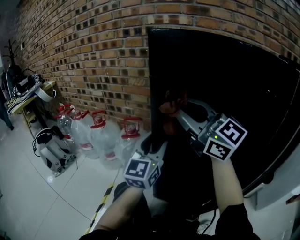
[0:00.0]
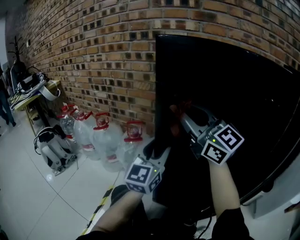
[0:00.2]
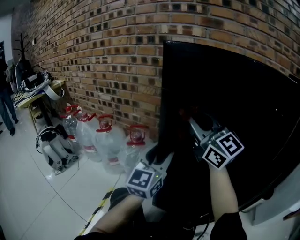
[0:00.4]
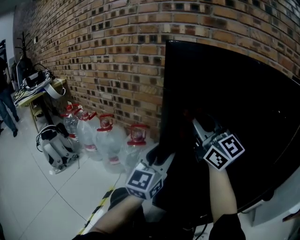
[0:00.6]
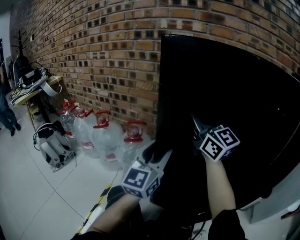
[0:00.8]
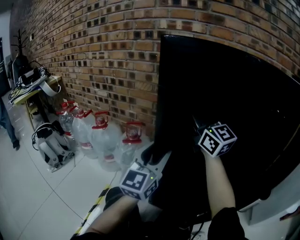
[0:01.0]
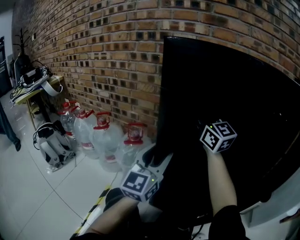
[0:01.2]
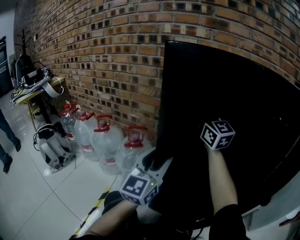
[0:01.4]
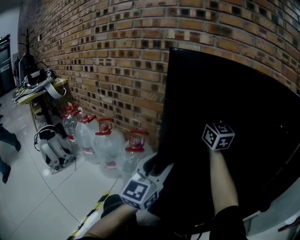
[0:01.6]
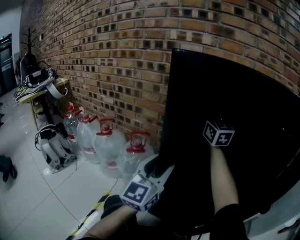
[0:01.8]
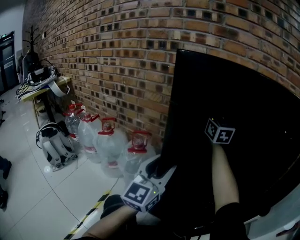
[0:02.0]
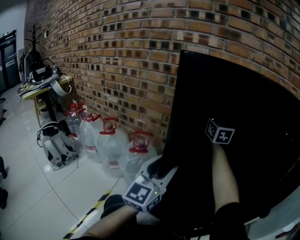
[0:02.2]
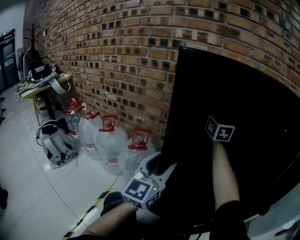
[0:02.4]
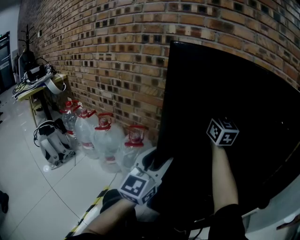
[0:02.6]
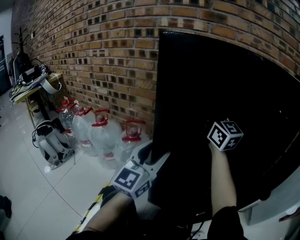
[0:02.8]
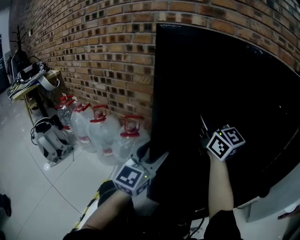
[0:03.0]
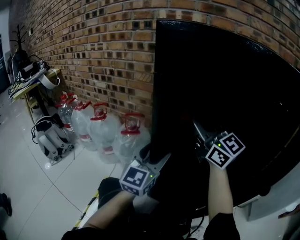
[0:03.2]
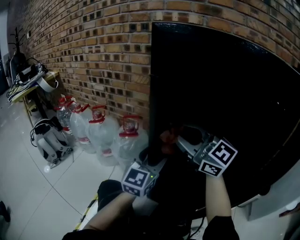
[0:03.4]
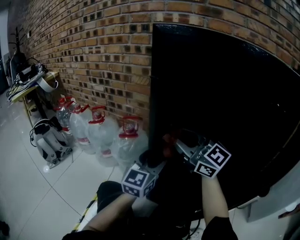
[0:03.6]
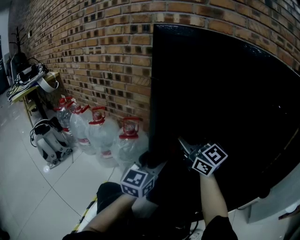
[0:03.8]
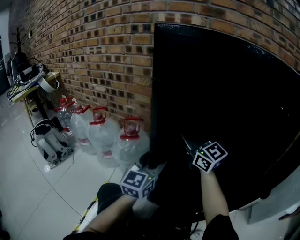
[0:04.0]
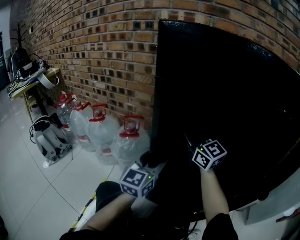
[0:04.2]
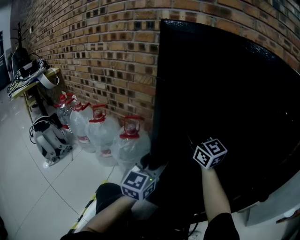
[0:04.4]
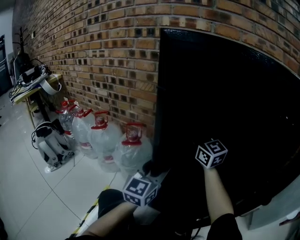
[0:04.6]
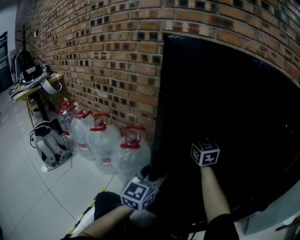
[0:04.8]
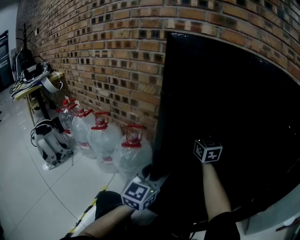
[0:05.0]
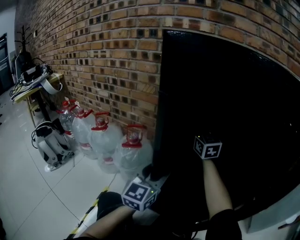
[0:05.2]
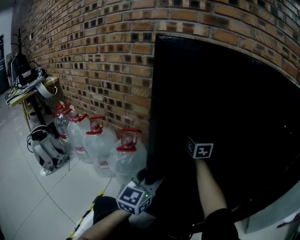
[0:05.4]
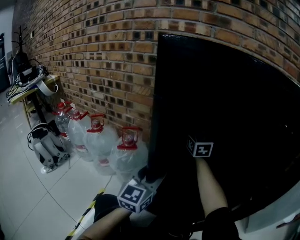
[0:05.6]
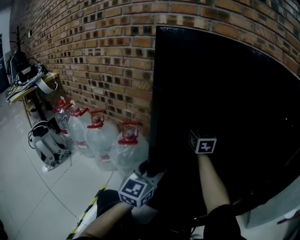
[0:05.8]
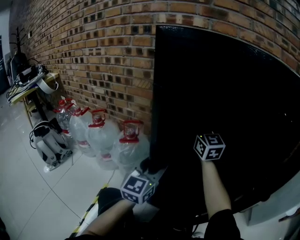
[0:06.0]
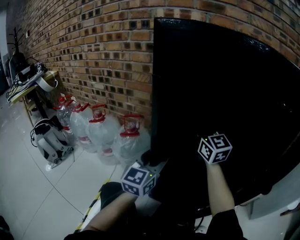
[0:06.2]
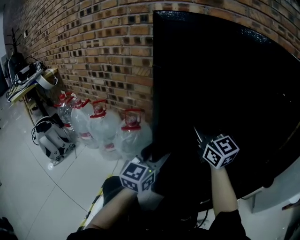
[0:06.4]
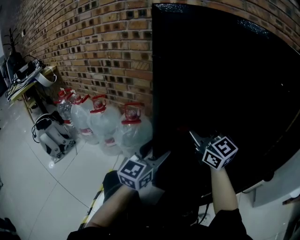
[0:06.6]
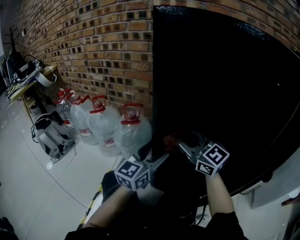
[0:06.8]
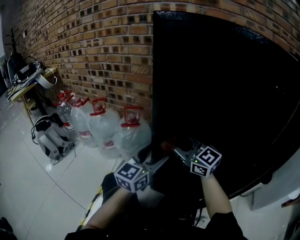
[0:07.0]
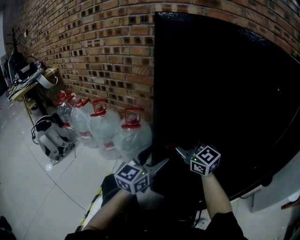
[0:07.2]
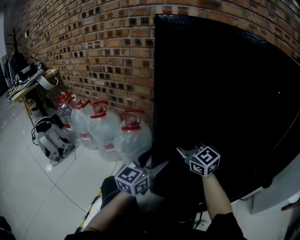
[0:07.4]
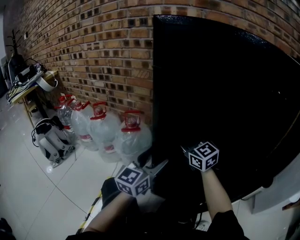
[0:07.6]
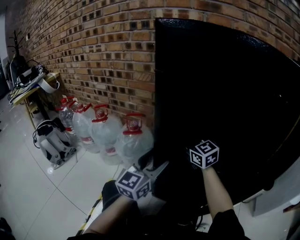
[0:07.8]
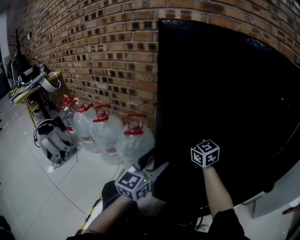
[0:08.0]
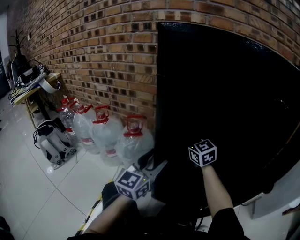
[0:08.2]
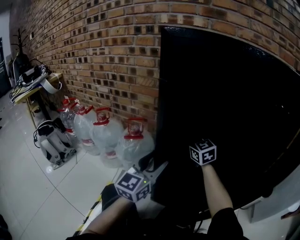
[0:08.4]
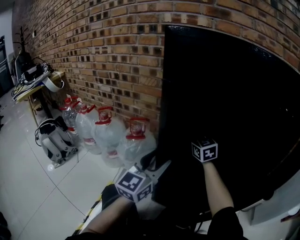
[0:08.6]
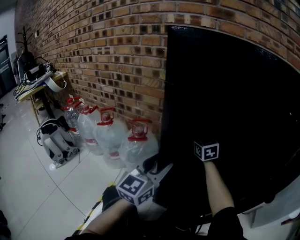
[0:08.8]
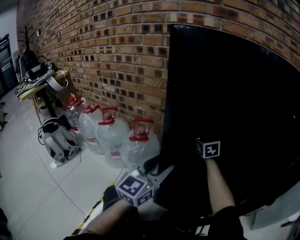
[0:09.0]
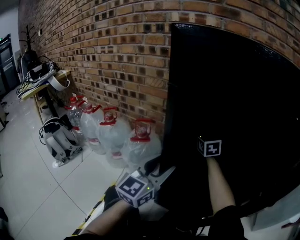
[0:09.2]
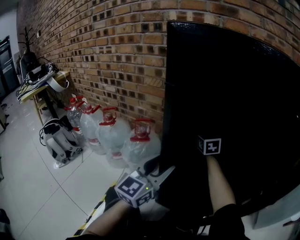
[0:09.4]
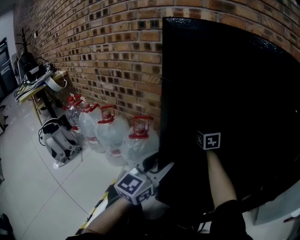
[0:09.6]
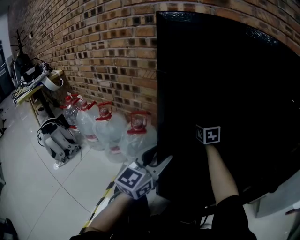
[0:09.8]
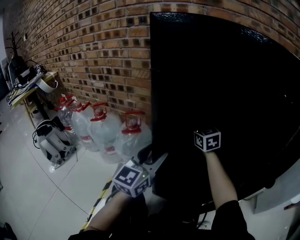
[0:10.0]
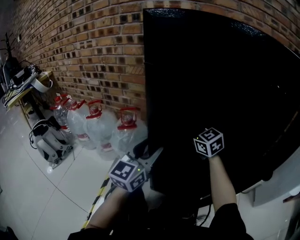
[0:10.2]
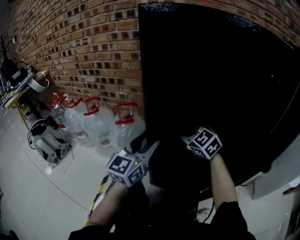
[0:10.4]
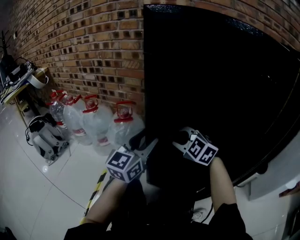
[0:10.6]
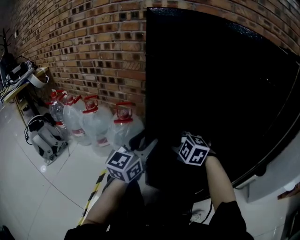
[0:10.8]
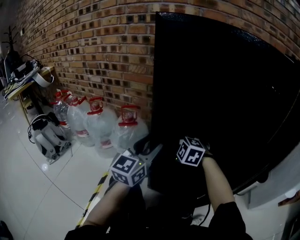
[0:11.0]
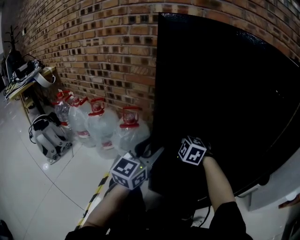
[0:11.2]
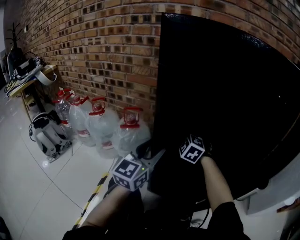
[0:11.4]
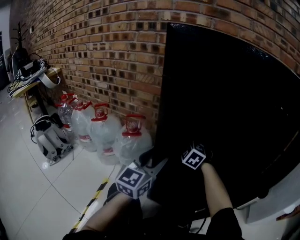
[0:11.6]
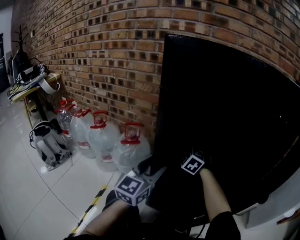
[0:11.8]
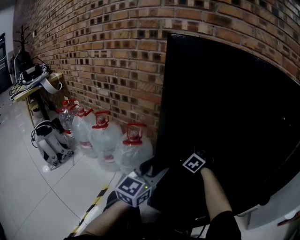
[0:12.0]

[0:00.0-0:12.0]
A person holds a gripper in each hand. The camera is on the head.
0:00.0 to 0:01.6: The right gripper moves forward and to the right, some 20 cm, and turns by approximately 30 degrees.
0:01.6 to 0:03.0: The right gripper travels backward by some 10 cm.
0:03.0 to 0:04.4: The right gripper is displaced downward by about 10 cm, while the left gripper goes some 5 cm downward.
0:04.4 to 0:06.0: The right gripper moves forward, some 5 cm.
0:06.0 to 0:07.6: The right gripper moves downward, backward and to the left, some 15 cm, and turns by about 20 degrees.
0:07.6 to 0:09.0: The right gripper heads forward, covering some 15 cm, and rotates approximately 20 degrees.
0:09.0 to 0:10.4: The right gripper travels backward by about 15 cm, and changes its angle by roughly 30 degrees.
0:10.4 to 0:12.0: The right gripper goes some 15 cm forward and downward, and turns by approximately 30 degrees.

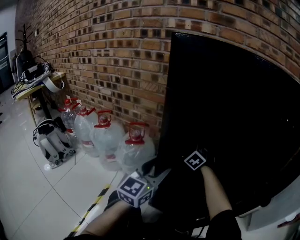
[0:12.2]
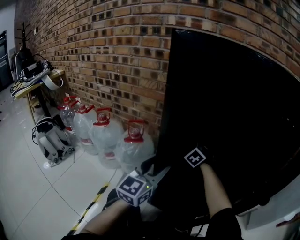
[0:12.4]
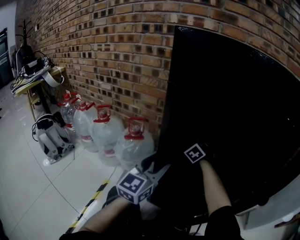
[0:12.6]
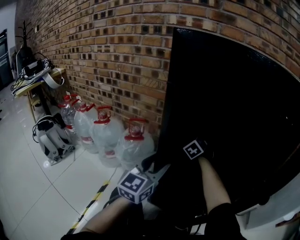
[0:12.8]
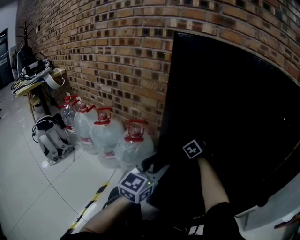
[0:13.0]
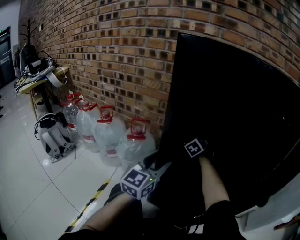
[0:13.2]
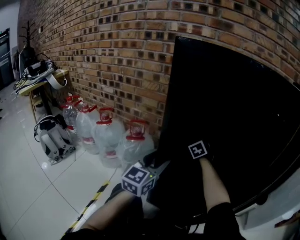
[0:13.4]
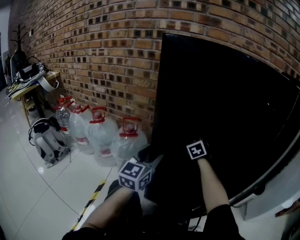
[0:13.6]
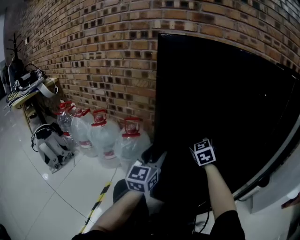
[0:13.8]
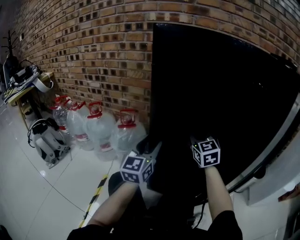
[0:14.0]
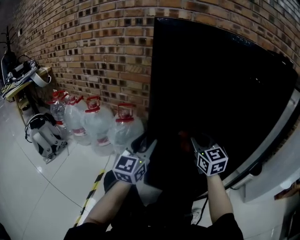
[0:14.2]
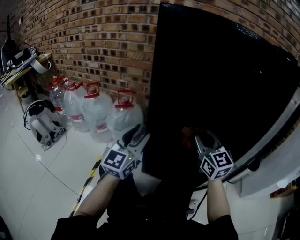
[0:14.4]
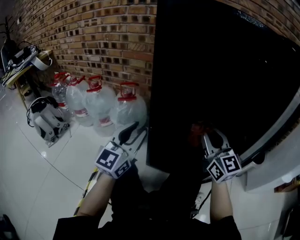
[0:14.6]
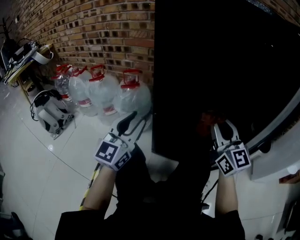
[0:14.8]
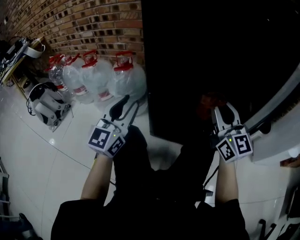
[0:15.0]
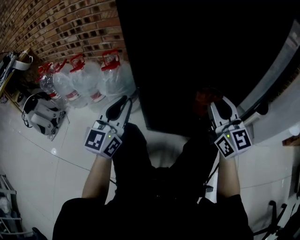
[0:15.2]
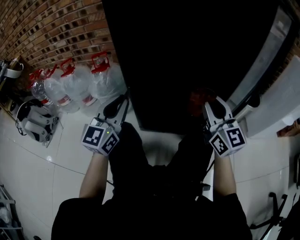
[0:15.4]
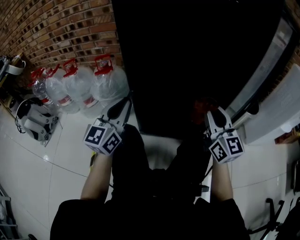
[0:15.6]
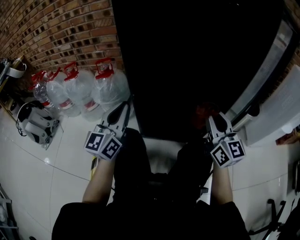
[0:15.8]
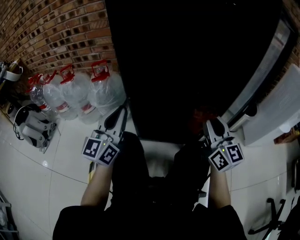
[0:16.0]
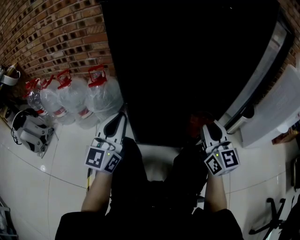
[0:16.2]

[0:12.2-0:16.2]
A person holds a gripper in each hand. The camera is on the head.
0:12.2 to 0:13.6: The right gripper travels upward by roughly 5 cm, and changes its angle by approximately 20 degrees.
0:13.6 to 0:14.8: The right gripper moves backward, about 30 cm, and points its fingers about 30 degrees further upward. Meanwhile the left gripper travels backward and to the left by roughly 15 cm.
0:14.8 to 0:16.2: The left gripper closes up. The right gripper heads backward, downward and to the right, covering roughly 10 cm.

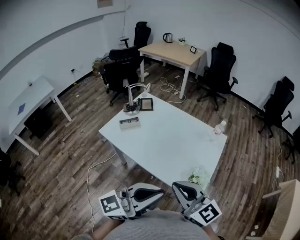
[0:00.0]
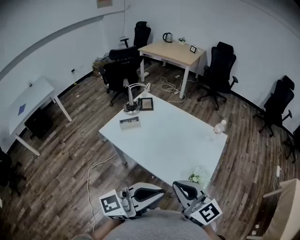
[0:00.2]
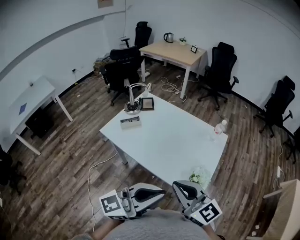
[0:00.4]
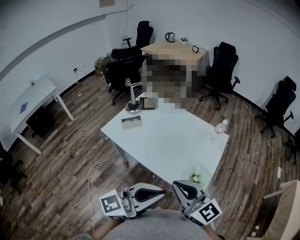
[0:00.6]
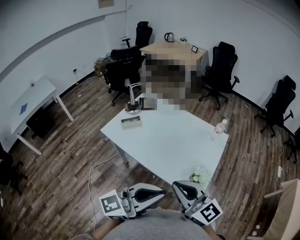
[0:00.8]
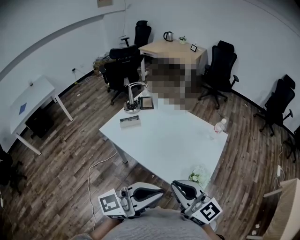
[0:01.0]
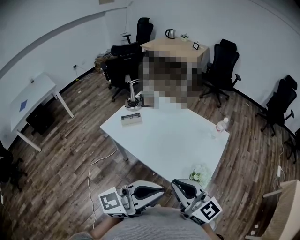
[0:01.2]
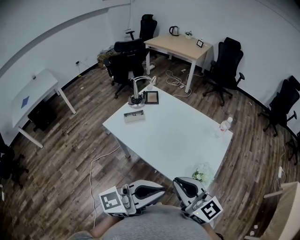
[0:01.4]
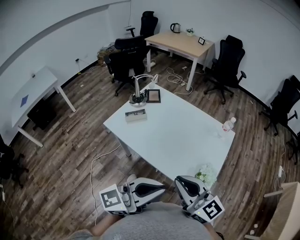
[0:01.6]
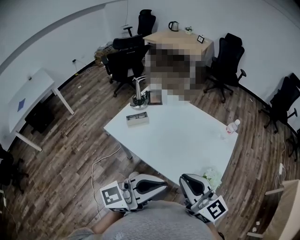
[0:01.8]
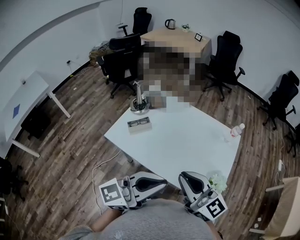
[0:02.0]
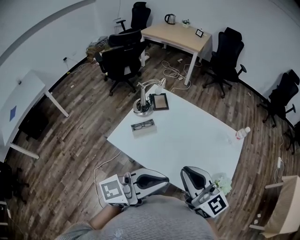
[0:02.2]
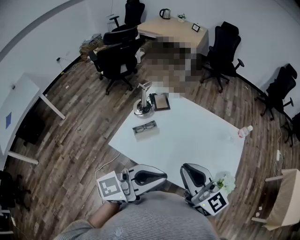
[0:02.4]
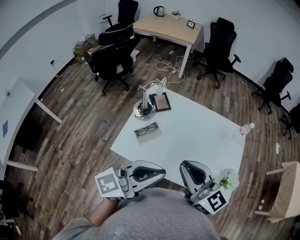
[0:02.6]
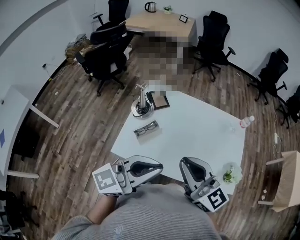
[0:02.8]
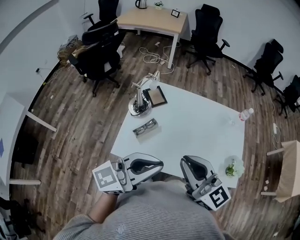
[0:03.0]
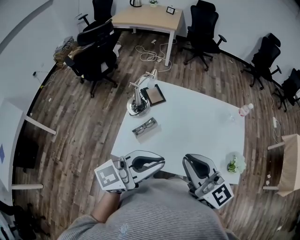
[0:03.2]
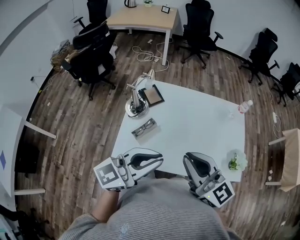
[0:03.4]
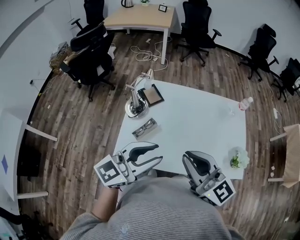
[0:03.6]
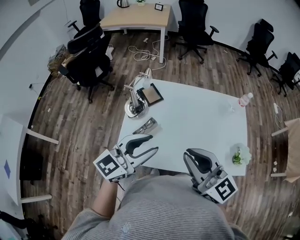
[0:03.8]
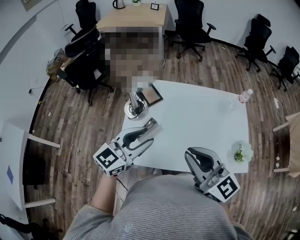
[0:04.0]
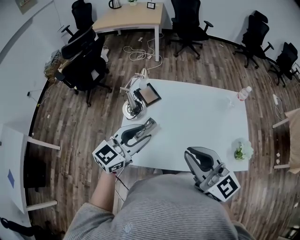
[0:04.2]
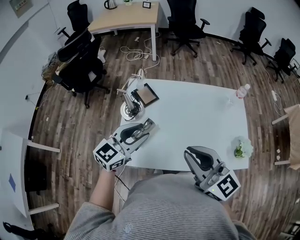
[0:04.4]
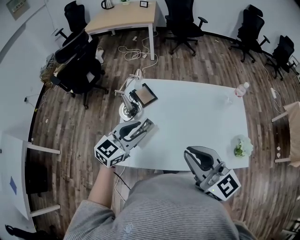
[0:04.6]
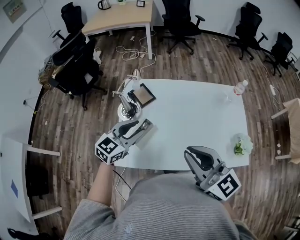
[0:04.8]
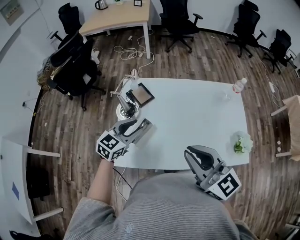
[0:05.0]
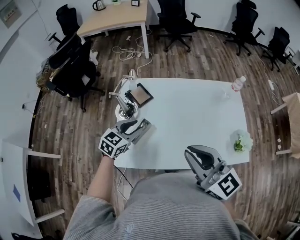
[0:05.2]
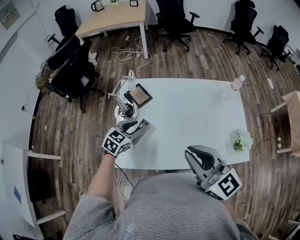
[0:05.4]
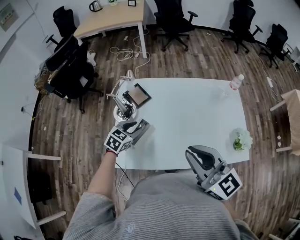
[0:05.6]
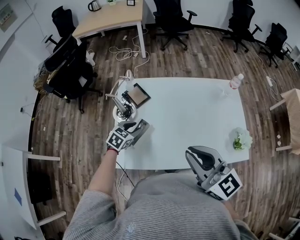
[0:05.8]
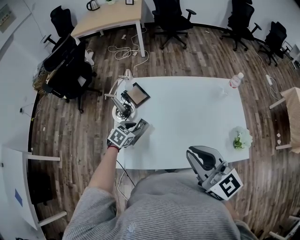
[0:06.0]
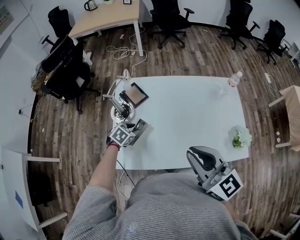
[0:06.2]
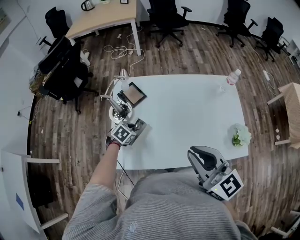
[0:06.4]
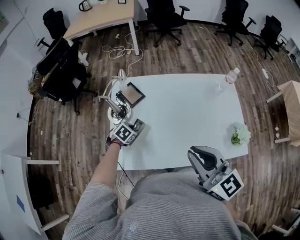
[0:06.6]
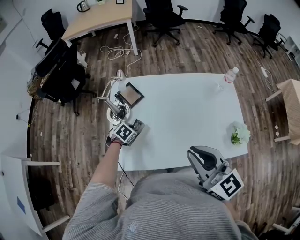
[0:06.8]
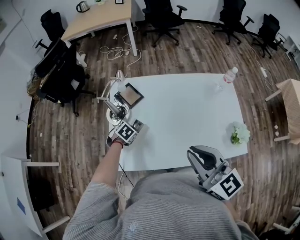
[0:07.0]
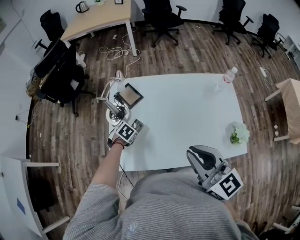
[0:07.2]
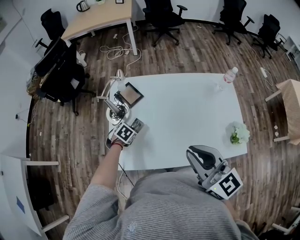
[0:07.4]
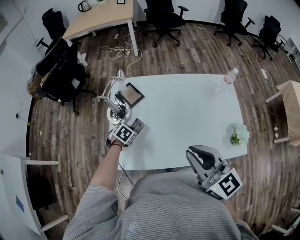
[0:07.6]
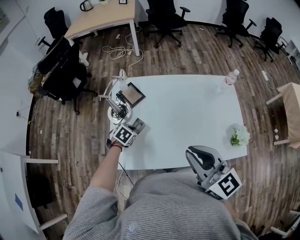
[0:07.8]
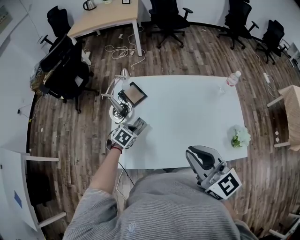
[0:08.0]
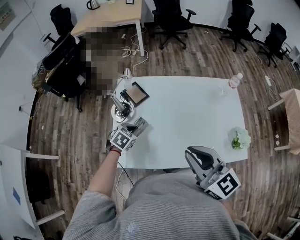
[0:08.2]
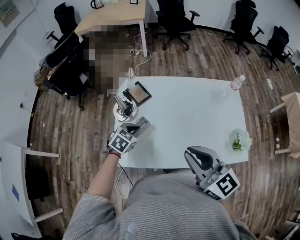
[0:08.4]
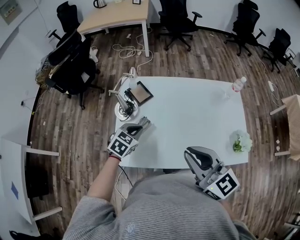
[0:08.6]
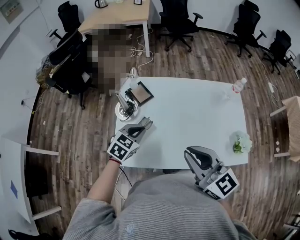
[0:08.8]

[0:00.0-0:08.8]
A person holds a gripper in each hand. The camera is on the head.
0:00.0 to 0:01.4: There are only small adjustments of the grippers.
0:01.4 to 0:03.0: The grippers both shift to the left and forward by about 35 cm. The right gripper changes its angle by roughly 20 degrees.
0:03.0 to 0:04.4: The left gripper travels forward, downward and to the left by some 20 cm, turns by some 30 degrees, and opens up.
0:04.4 to 0:05.8: The left gripper heads downward, covering about 20 cm, and points its fingers some 40 degrees further downward.
0:05.8 to 0:07.4: The left gripper shifts some 10 cm downward, swivels approximately 20 degrees, and closes.
0:07.4 to 0:08.8: The left gripper goes some 15 cm upward, and angles its fingers upward, by some 30 degrees.
